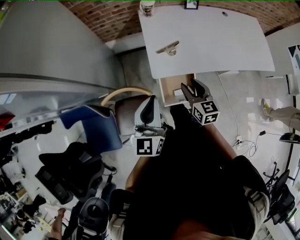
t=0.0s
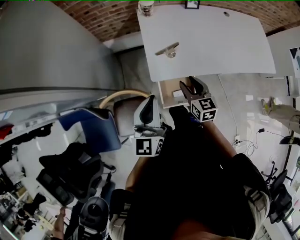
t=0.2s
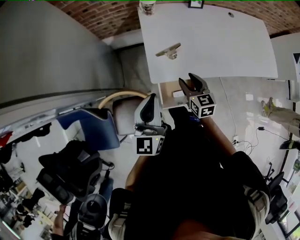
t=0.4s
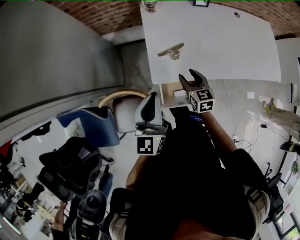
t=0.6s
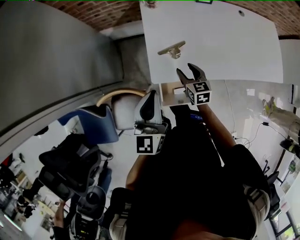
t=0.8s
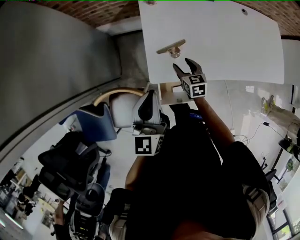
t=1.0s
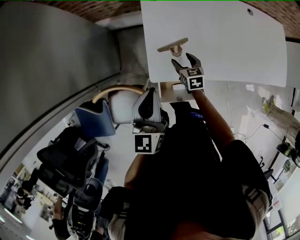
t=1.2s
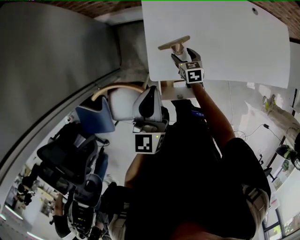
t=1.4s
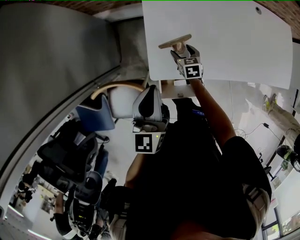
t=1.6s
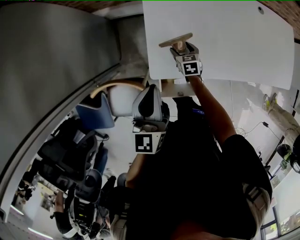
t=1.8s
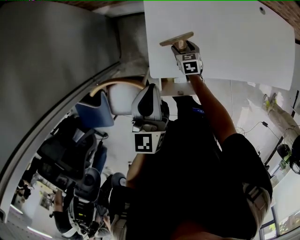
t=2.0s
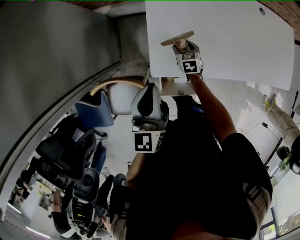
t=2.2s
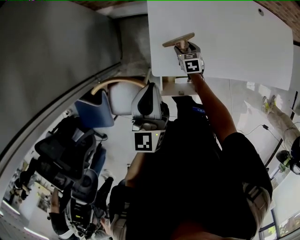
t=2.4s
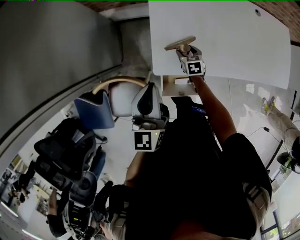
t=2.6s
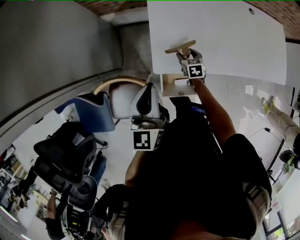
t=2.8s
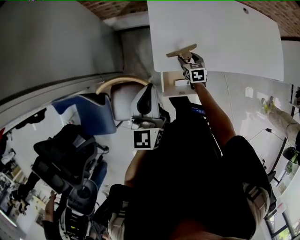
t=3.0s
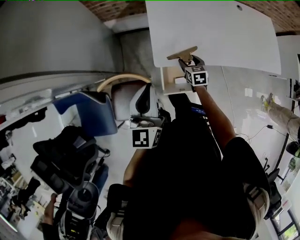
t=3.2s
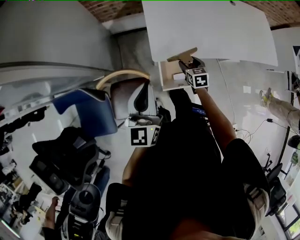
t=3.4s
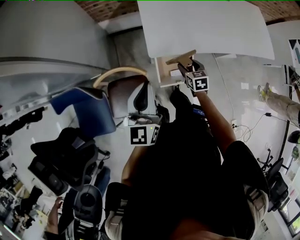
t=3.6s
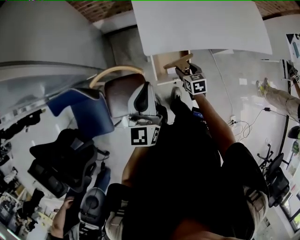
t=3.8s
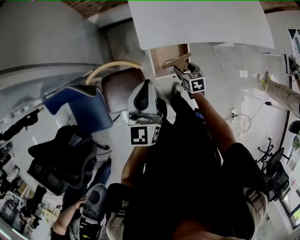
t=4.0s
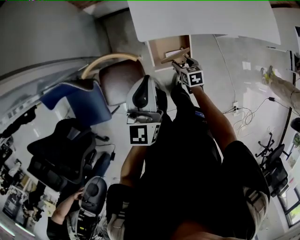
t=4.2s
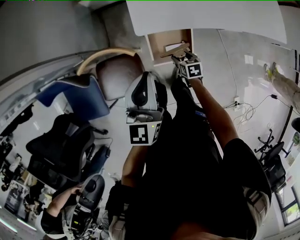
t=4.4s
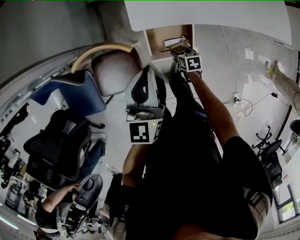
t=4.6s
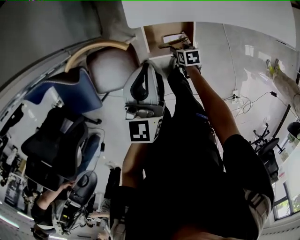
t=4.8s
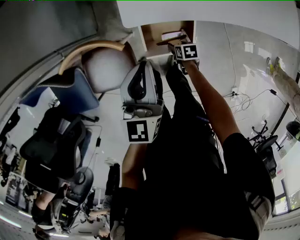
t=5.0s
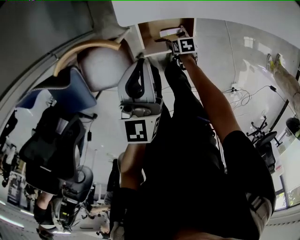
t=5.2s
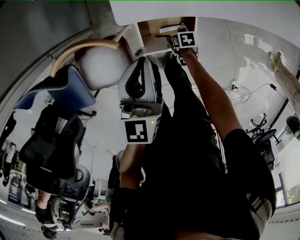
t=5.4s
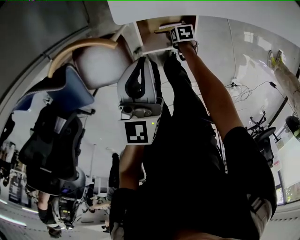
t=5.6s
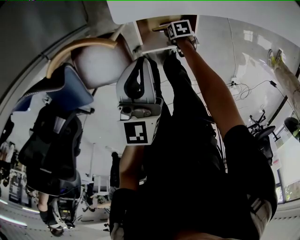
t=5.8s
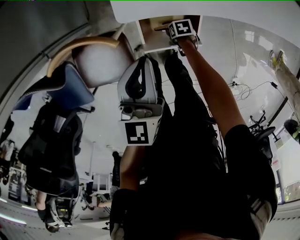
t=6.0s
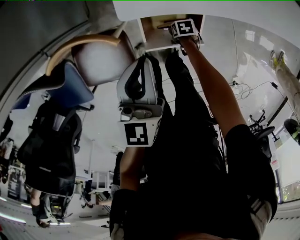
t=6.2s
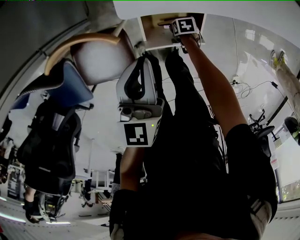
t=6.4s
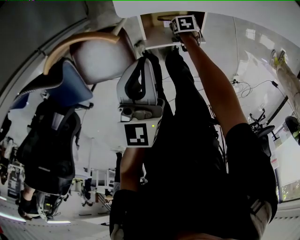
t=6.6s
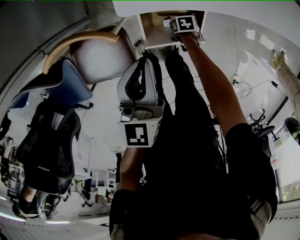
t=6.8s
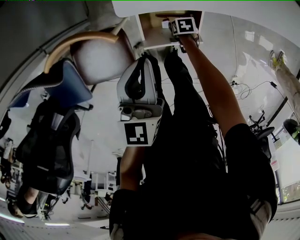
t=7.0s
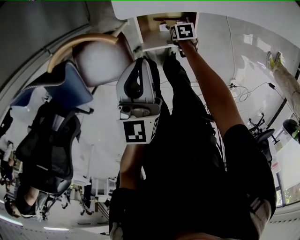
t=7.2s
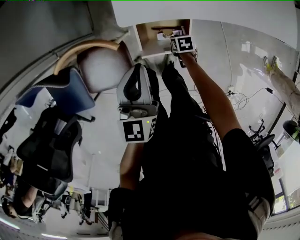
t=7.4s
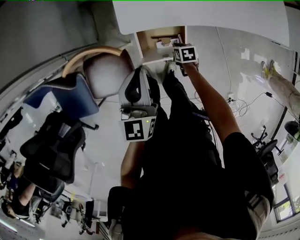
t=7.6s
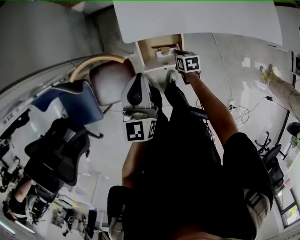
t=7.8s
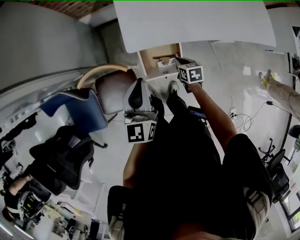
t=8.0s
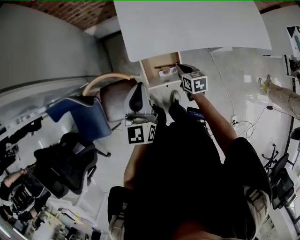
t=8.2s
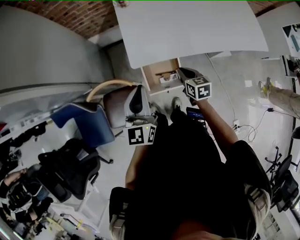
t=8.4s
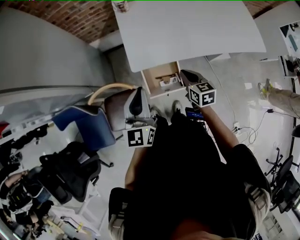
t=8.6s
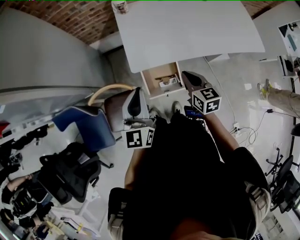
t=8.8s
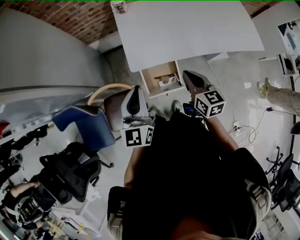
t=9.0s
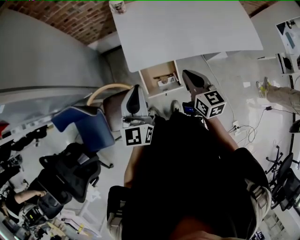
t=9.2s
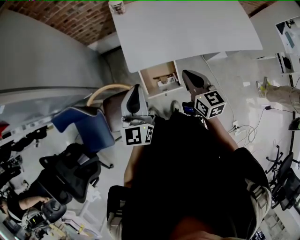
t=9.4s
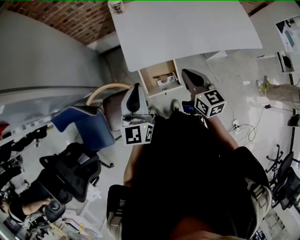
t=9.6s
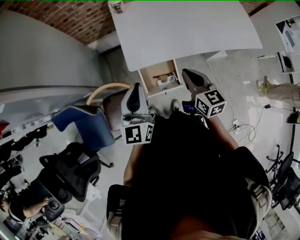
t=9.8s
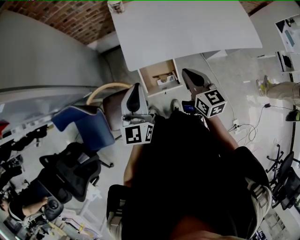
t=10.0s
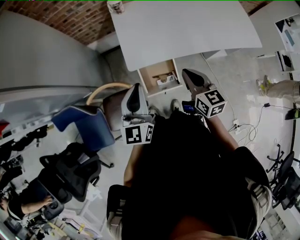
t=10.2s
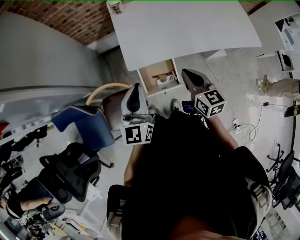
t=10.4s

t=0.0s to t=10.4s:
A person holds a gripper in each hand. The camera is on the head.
t=0.0s to t=1.4s: The right gripper heads forward and downward, covering about 30 cm, turns by about 20 degrees, and opens its fingers. Meanwhile the left gripper shifts roughly 15 cm forward.
t=1.4s to t=3.0s: Both grippers move backward, roughly 10 cm.
t=3.0s to t=4.4s: The right gripper heads backward and downward, covering some 25 cm. The left gripper is displaced backward and downward by approximately 10 cm.
t=4.4s to t=6.0s: The right gripper shifts roughly 20 cm downward, and turns by about 30 degrees. Meanwhile the left gripper goes some 10 cm downward.
t=6.0s to t=7.4s: The right gripper goes approximately 10 cm upward, and closes its fingers.
t=7.4s to t=9.0s: The left gripper shifts some 20 cm upward, while the right gripper shifts roughly 50 cm upward, and tips its fingers upward by approximately 50 degrees.
t=9.0s to t=10.4s: The grippers move only a little.

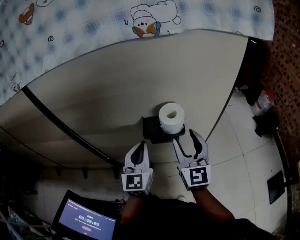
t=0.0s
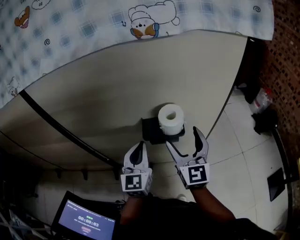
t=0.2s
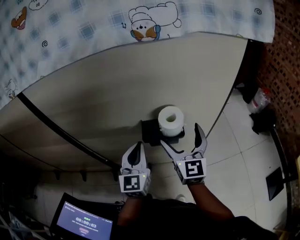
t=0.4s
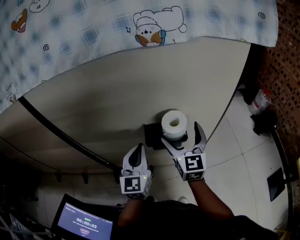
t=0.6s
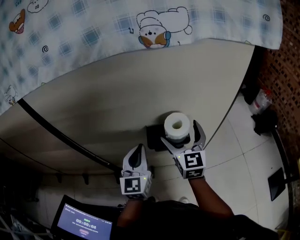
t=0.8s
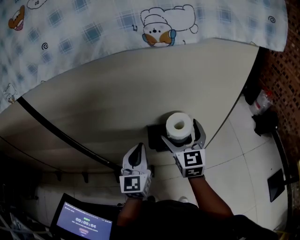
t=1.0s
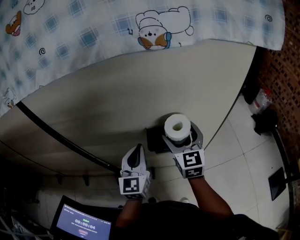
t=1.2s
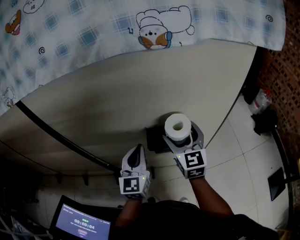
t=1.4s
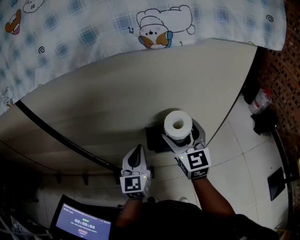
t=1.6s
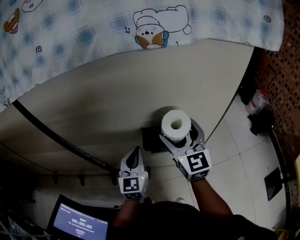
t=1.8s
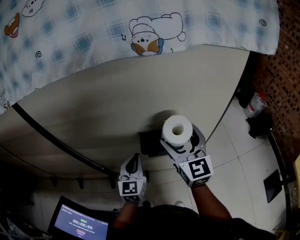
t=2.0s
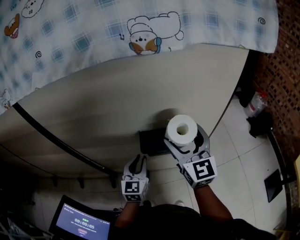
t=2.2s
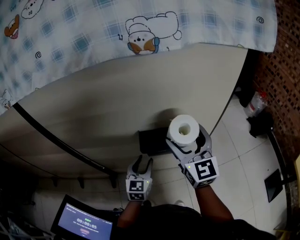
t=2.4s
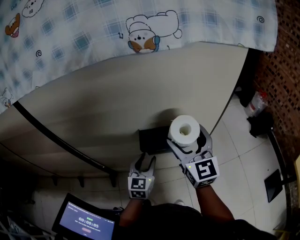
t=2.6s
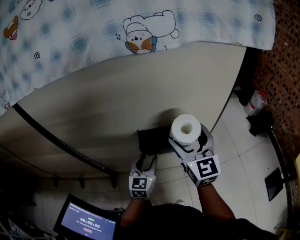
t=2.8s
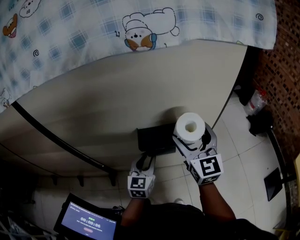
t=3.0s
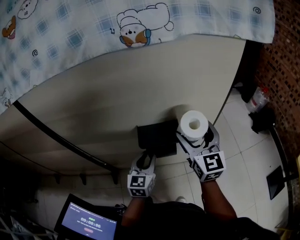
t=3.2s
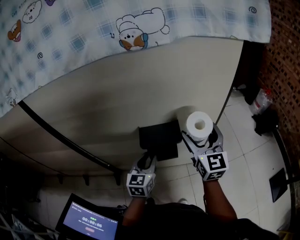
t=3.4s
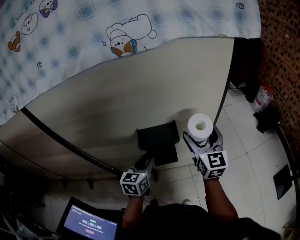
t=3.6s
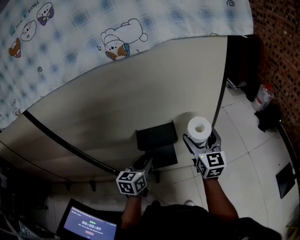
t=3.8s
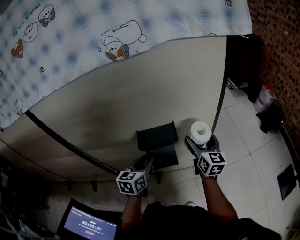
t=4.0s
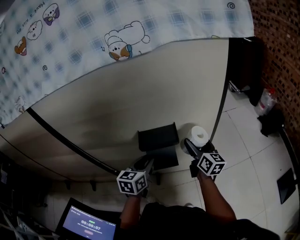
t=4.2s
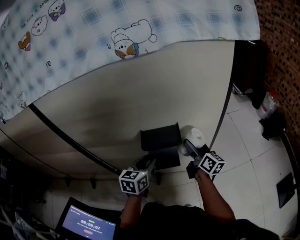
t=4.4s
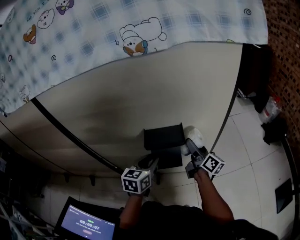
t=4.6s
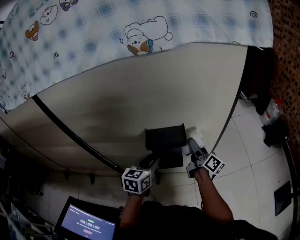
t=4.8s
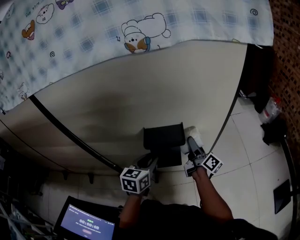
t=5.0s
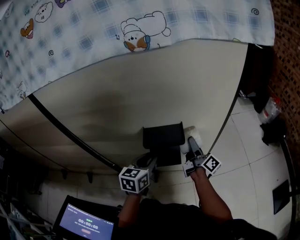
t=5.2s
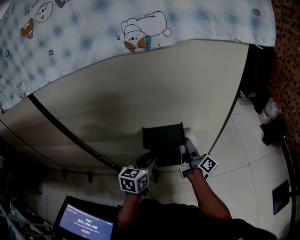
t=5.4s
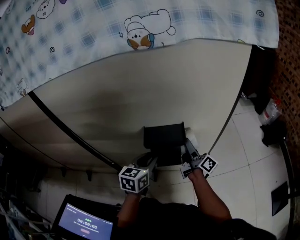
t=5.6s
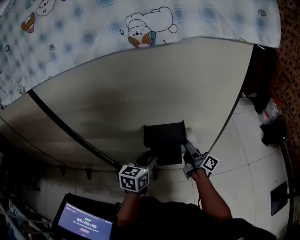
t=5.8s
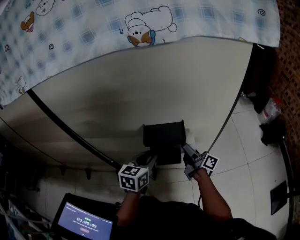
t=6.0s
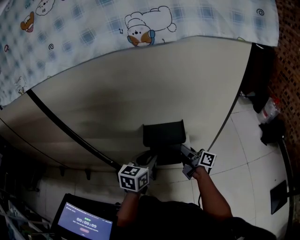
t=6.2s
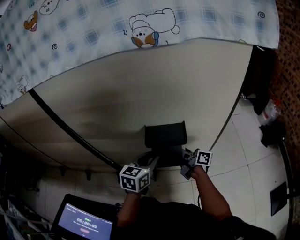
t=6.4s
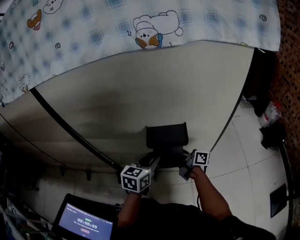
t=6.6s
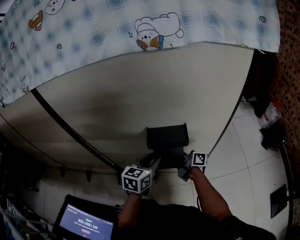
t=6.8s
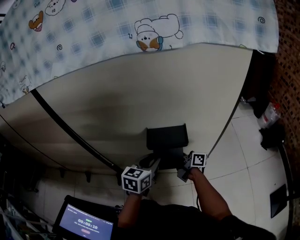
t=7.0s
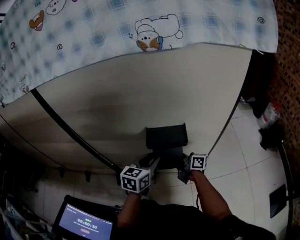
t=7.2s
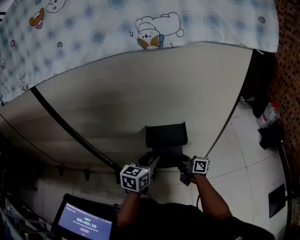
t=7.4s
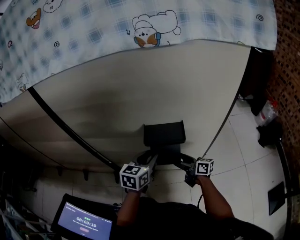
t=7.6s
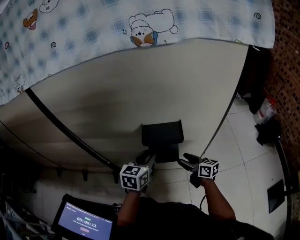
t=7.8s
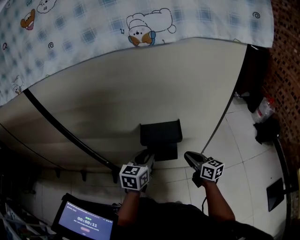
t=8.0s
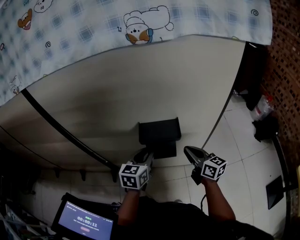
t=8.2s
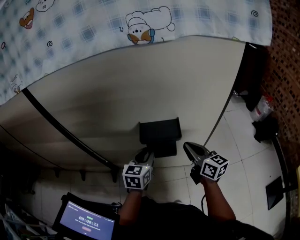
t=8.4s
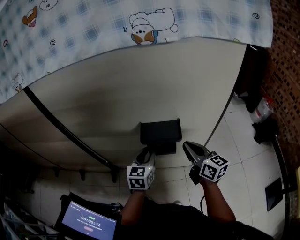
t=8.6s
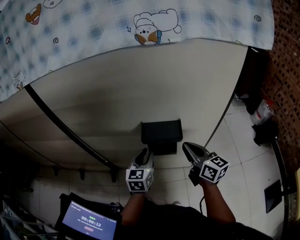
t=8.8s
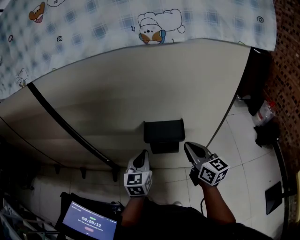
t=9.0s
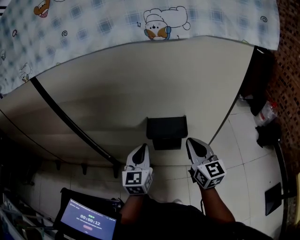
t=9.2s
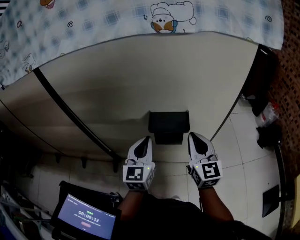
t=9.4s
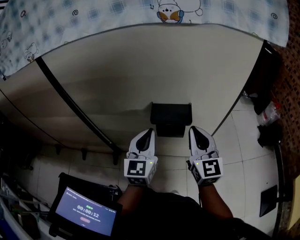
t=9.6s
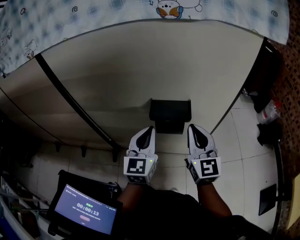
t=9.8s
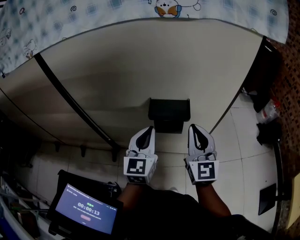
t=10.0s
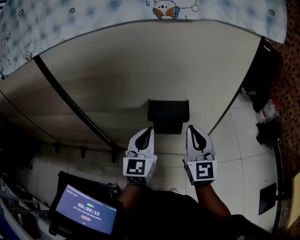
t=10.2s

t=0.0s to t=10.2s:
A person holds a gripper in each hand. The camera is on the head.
t=0.0s to t=1.4s: The left gripper changes place by about 5 cm, while the right gripper is displaced forward by roughly 10 cm, and opens its fingers.
t=1.4s to t=3.0s: The right gripper is displaced to the right by some 5 cm; the left gripper shifts some 10 cm downward and to the right, and opens its fingers.
t=3.0s to t=4.4s: The right gripper goes some 15 cm downward, and rotates around the line of its fingers by roughly 50 degrees, clockwise from behind.
t=4.4s to t=5.8s: The right gripper moves some 5 cm, and swivels approximately 30 degrees.
t=5.8s to t=7.2s: The right gripper goes approximately 10 cm to the left, and changes its angle by approximately 30 degrees.
t=7.2s to t=8.8s: The right gripper is displaced upward, to the right and backward by roughly 15 cm, turns by approximately 40 degrees, and closes up.
t=8.8s to t=10.2s: The right gripper moves upward, approximately 5 cm, and changes its angle by about 40 degrees, while the left gripper goes about 10 cm upward, and closes its fingers.

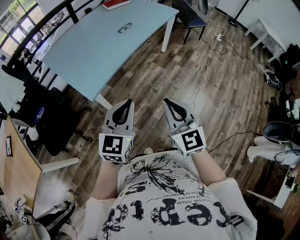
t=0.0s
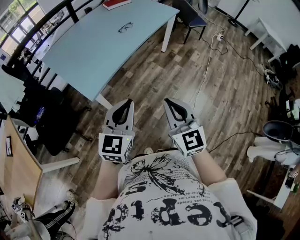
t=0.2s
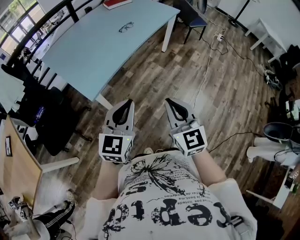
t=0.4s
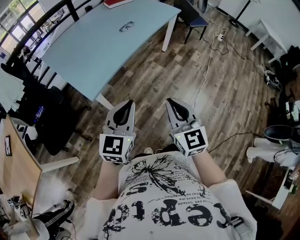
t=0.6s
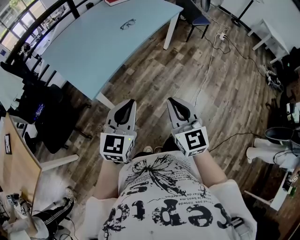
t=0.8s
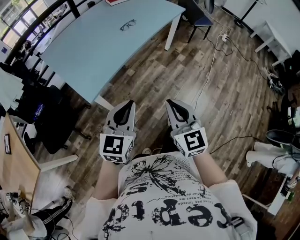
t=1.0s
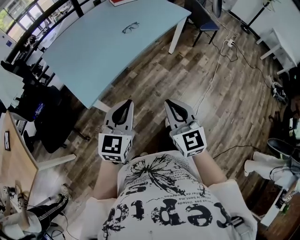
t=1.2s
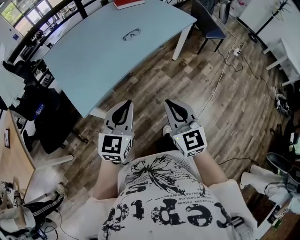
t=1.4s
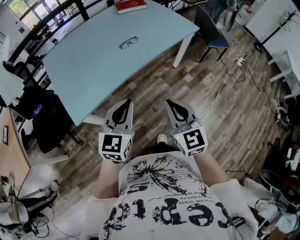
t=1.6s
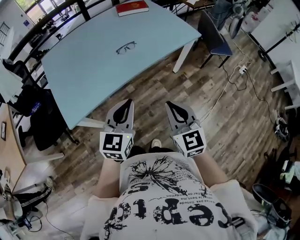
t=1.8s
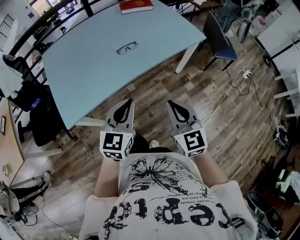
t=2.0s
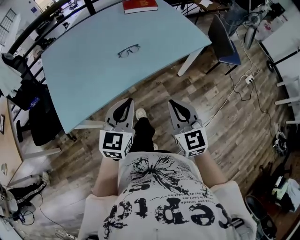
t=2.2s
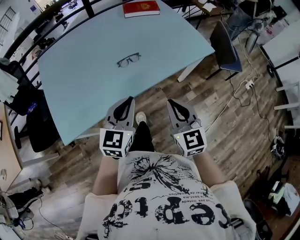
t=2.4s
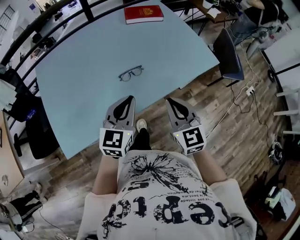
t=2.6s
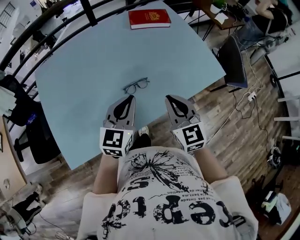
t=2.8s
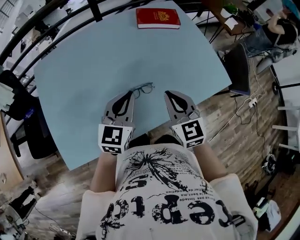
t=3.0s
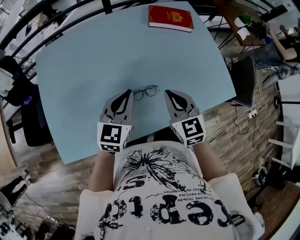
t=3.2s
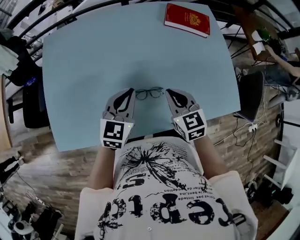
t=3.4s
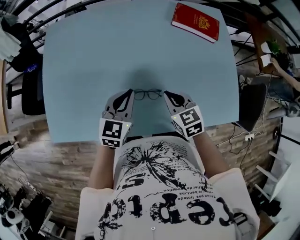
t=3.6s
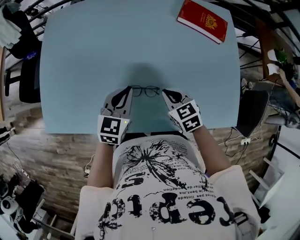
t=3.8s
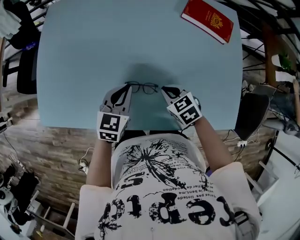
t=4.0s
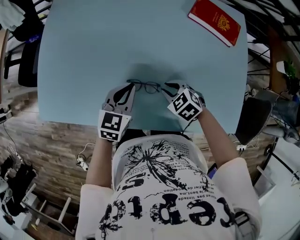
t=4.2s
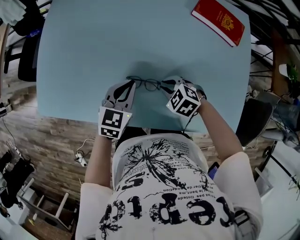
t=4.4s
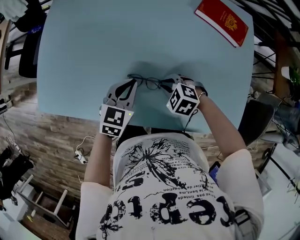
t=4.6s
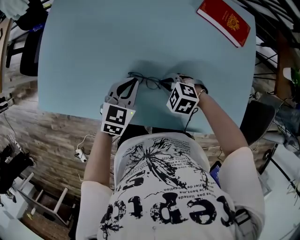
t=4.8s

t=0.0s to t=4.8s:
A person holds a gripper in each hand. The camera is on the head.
t=0.0s to t=1.6s: Both grippers travel together forward and to the right, about 30 cm.
t=1.6s to t=3.2s: The two grippers travel together, forward, about 60 cm. The right gripper swivels roughly 20 degrees.
t=3.2s to t=4.8s: Both grippers travel together downward, roughly 20 cm. The right gripper points its fingers roughly 40 degrees further downward. The left gripper changes its angle by some 30 degrees.
